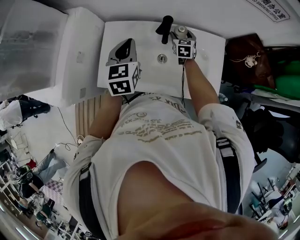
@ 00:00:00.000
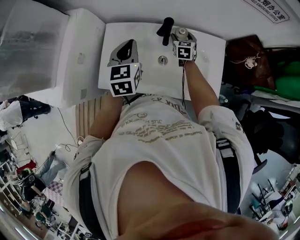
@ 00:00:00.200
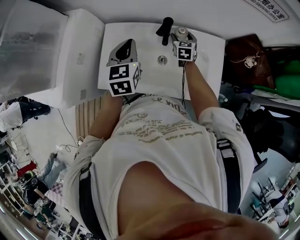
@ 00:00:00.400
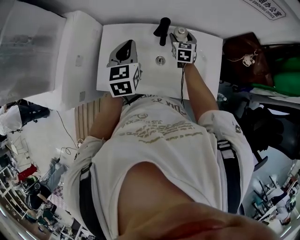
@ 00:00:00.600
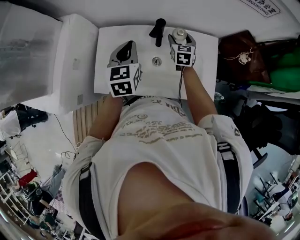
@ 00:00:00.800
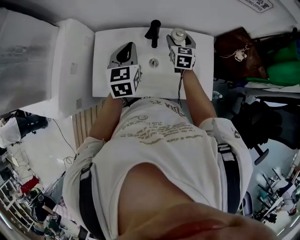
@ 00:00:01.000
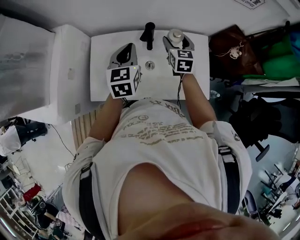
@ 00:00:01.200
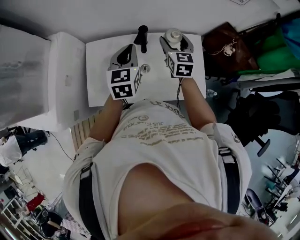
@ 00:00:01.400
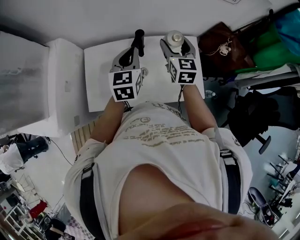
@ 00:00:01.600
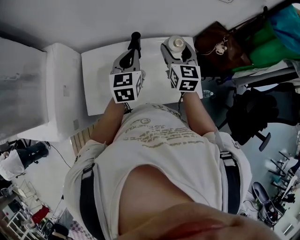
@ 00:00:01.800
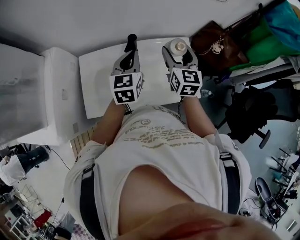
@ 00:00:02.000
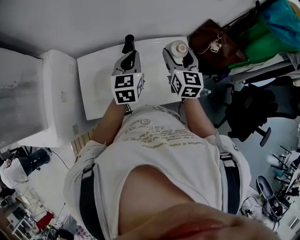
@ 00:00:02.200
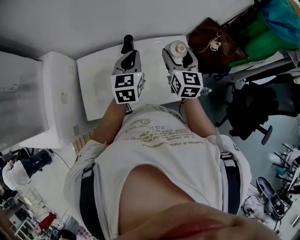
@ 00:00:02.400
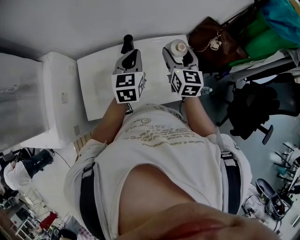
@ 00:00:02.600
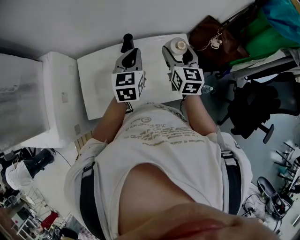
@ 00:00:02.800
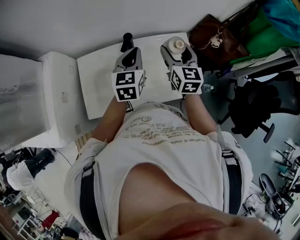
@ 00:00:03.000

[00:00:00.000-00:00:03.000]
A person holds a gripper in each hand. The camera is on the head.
00:00:00.000 to 00:00:01.600: The right gripper is displaced upward and backward by approximately 25 cm; the left gripper heads to the right, covering about 10 cm.
00:00:01.600 to 00:00:03.000: The right gripper changes place by approximately 5 cm; the left gripper travels to the right by some 5 cm.

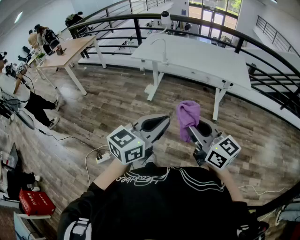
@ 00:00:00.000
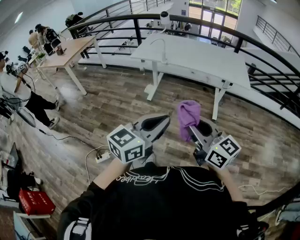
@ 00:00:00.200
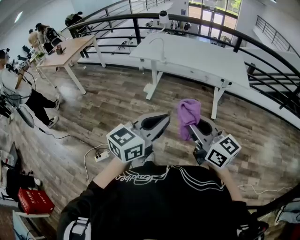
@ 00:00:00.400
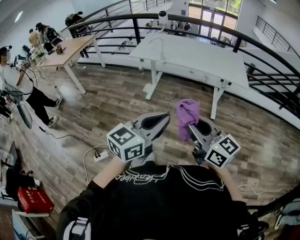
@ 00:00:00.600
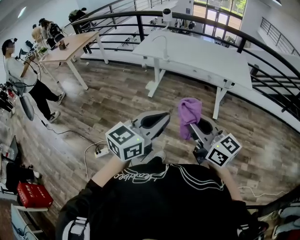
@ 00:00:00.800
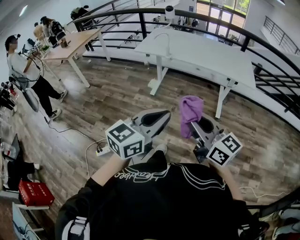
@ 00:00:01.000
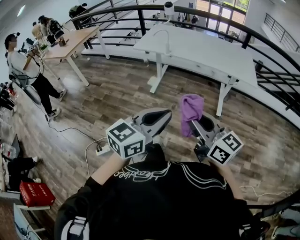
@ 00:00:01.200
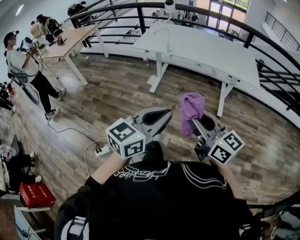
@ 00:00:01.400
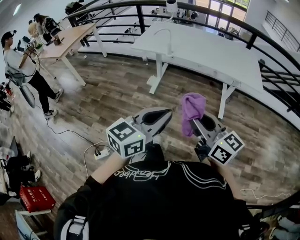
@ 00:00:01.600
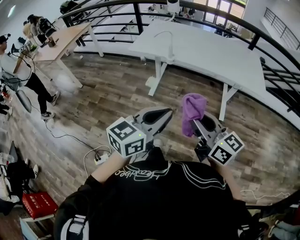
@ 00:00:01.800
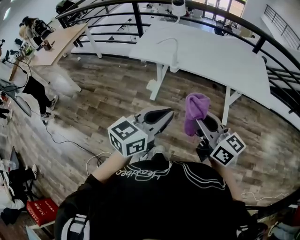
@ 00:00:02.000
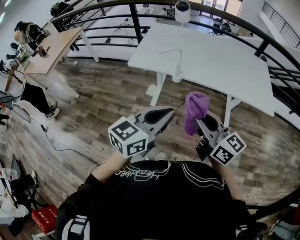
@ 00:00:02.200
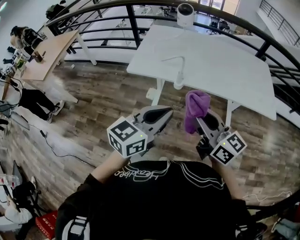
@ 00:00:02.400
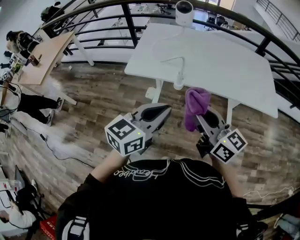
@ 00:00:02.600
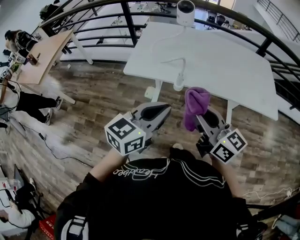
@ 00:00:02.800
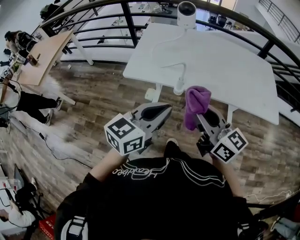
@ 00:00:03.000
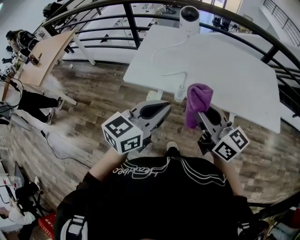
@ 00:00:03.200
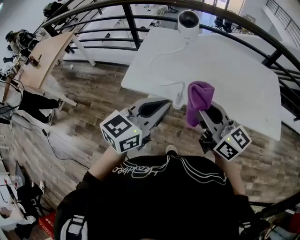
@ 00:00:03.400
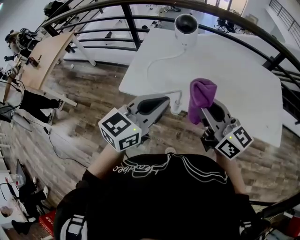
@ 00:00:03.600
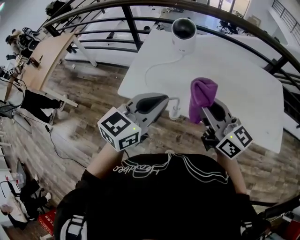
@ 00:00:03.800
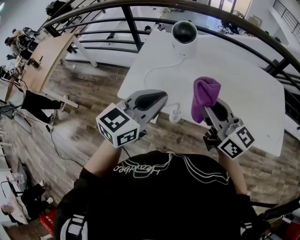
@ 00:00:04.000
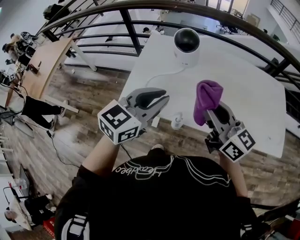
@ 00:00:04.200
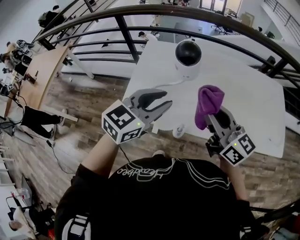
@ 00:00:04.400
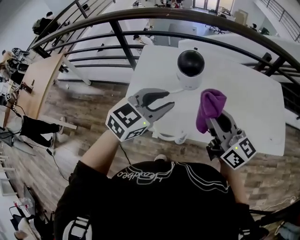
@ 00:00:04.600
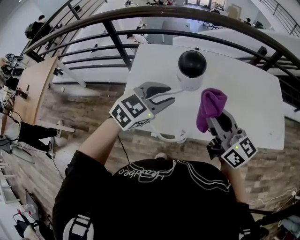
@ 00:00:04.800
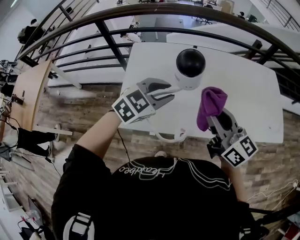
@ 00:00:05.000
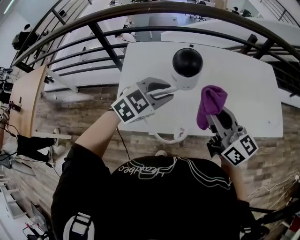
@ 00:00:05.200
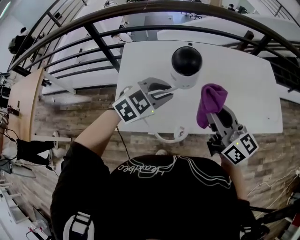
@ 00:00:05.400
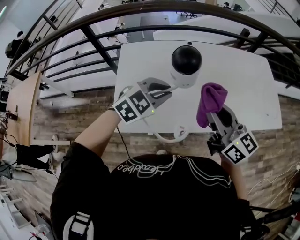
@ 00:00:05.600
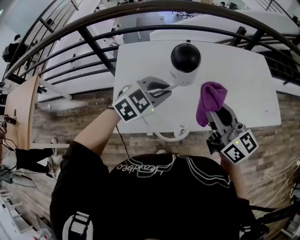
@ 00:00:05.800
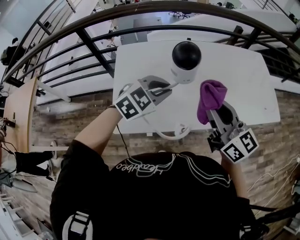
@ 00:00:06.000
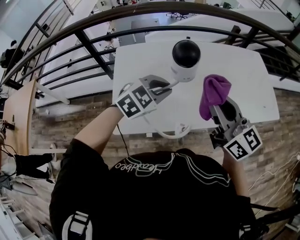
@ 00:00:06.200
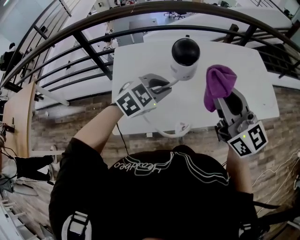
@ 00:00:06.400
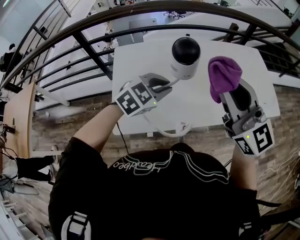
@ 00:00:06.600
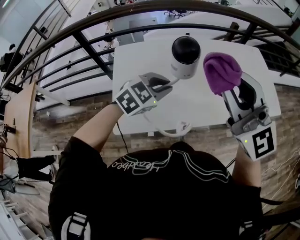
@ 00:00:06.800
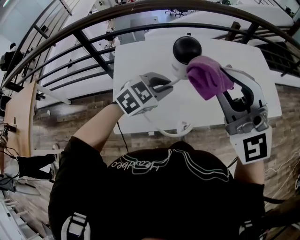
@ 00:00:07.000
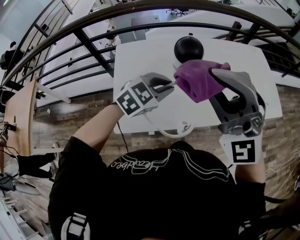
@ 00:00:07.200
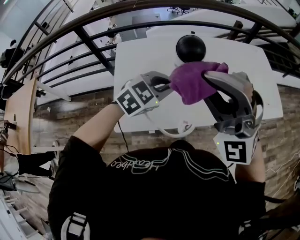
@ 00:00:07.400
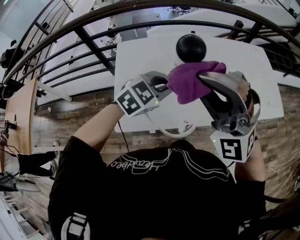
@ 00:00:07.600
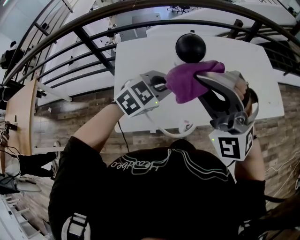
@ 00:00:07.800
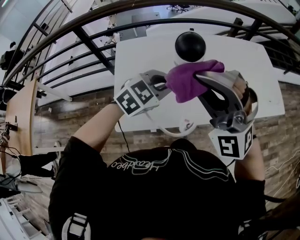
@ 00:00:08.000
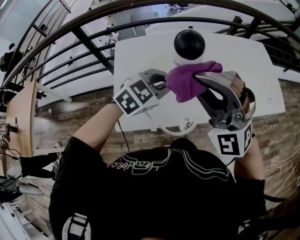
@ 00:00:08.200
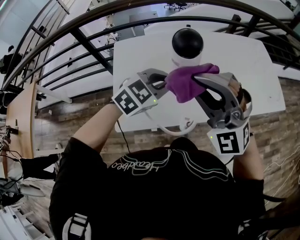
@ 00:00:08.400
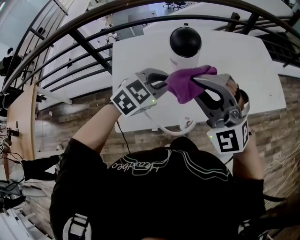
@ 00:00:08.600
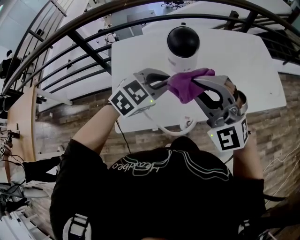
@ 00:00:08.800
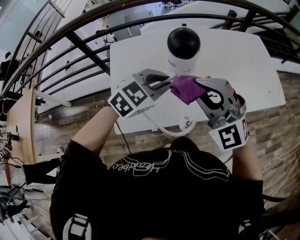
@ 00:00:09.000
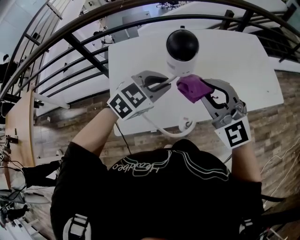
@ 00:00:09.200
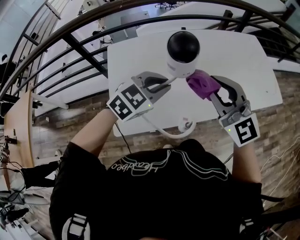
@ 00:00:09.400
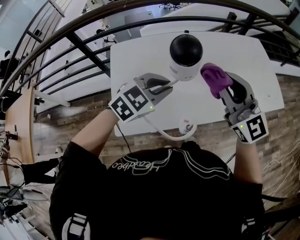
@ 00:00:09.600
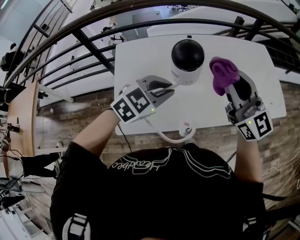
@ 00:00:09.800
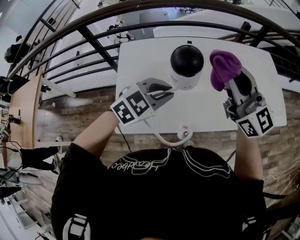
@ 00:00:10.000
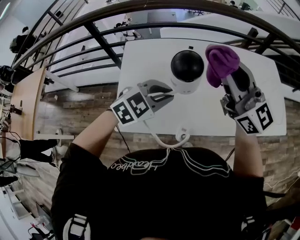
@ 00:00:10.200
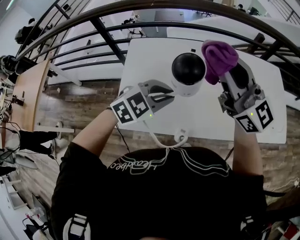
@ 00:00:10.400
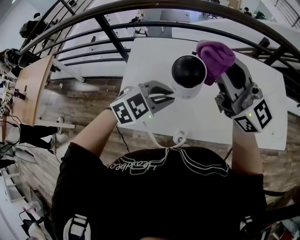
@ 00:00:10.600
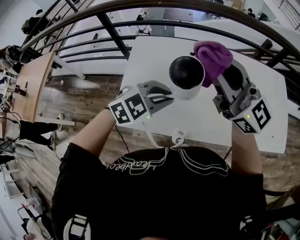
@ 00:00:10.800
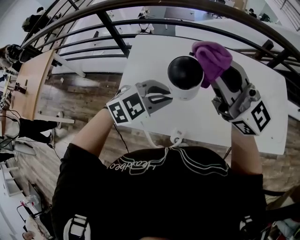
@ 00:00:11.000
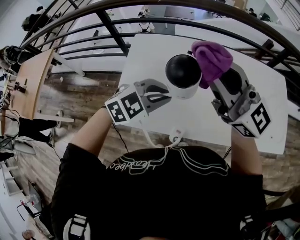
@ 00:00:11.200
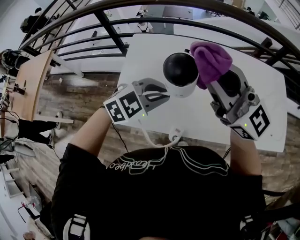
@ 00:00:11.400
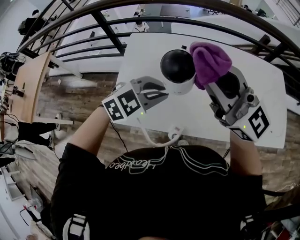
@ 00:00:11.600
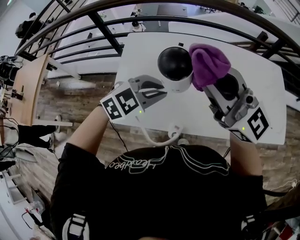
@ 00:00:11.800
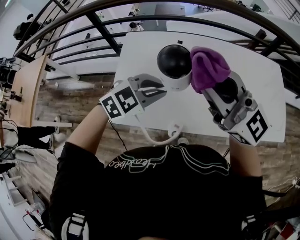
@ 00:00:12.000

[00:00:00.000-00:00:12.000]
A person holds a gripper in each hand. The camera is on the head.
00:00:00.000 to 00:00:01.600: The two grippers go approximately 15 cm forward.
00:00:01.600 to 00:00:03.000: Both grippers are carried forward, about 50 cm.
00:00:03.000 to 00:00:04.400: Both grippers move forward, approximately 25 cm. The left gripper opens its fingers.
00:00:04.400 to 00:00:06.000: The left gripper heads forward and downward, covering roughly 10 cm, and swivels roughly 40 degrees, while the right gripper rotates about 20 degrees.
00:00:06.000 to 00:00:07.600: The right gripper moves to the left and upward, roughly 10 cm, and twists some 80 degrees counterclockwise, seen from behind.
00:00:07.600 to 00:00:09.000: The right gripper goes roughly 10 cm downward, and turns by roughly 20 degrees.
00:00:09.000 to 00:00:10.400: The right gripper travels forward and upward by roughly 15 cm, and rolls clockwise, seen from behind, by some 40 degrees.
00:00:10.400 to 00:00:12.000: The right gripper travels backward by approximately 5 cm.

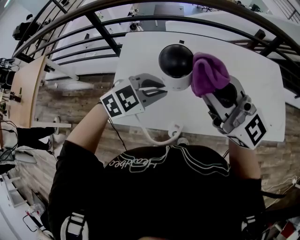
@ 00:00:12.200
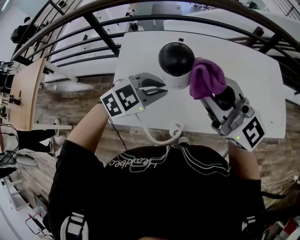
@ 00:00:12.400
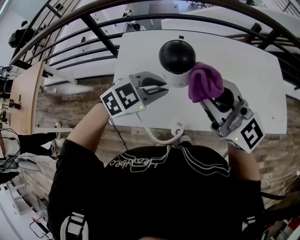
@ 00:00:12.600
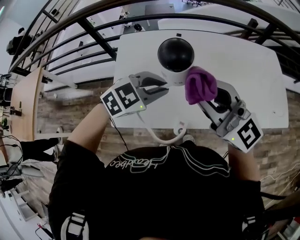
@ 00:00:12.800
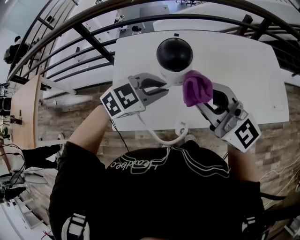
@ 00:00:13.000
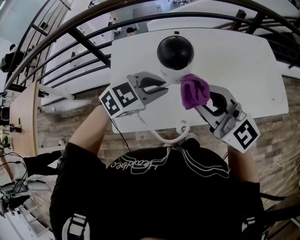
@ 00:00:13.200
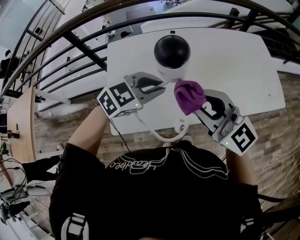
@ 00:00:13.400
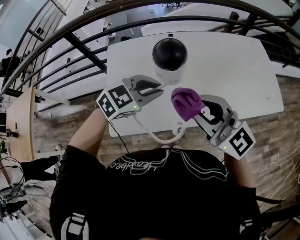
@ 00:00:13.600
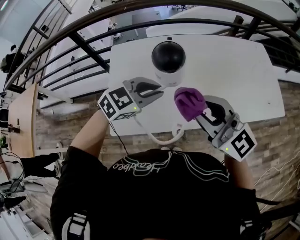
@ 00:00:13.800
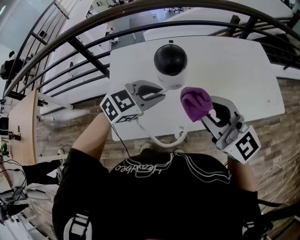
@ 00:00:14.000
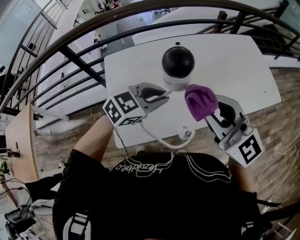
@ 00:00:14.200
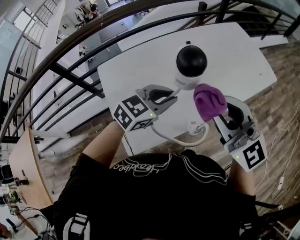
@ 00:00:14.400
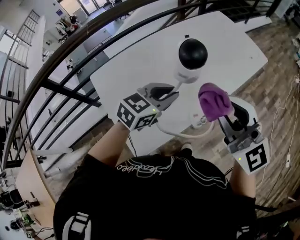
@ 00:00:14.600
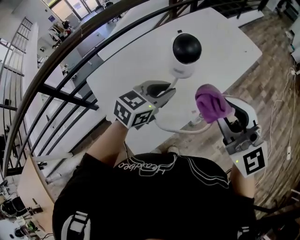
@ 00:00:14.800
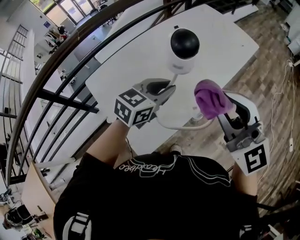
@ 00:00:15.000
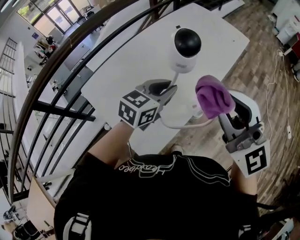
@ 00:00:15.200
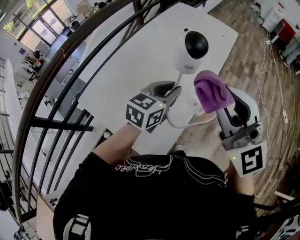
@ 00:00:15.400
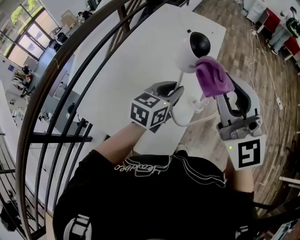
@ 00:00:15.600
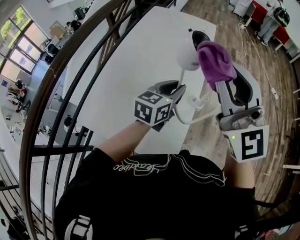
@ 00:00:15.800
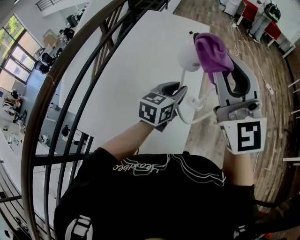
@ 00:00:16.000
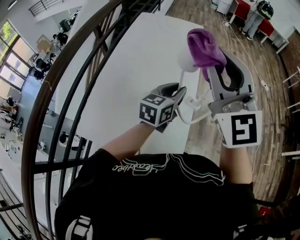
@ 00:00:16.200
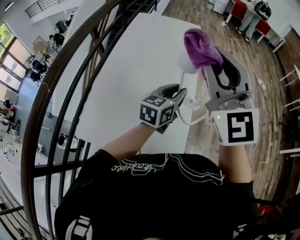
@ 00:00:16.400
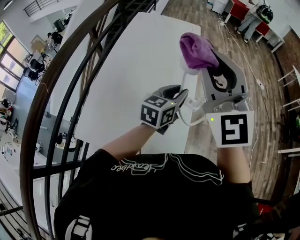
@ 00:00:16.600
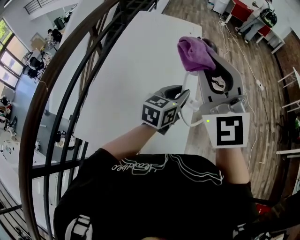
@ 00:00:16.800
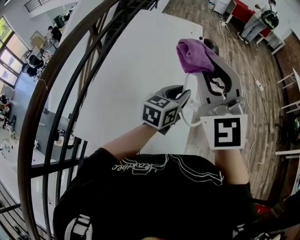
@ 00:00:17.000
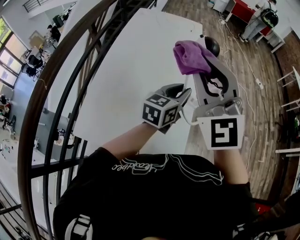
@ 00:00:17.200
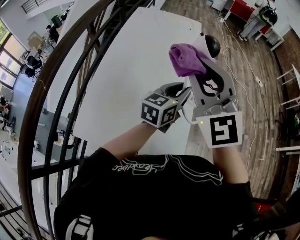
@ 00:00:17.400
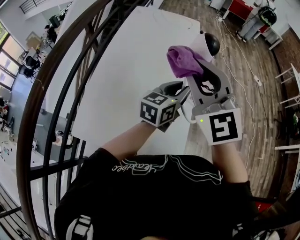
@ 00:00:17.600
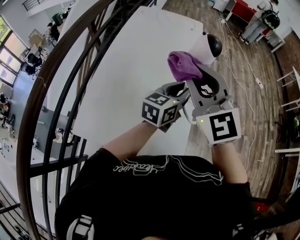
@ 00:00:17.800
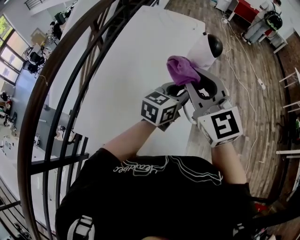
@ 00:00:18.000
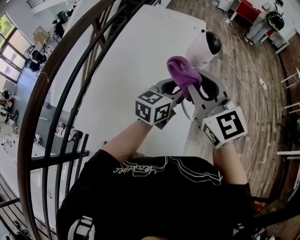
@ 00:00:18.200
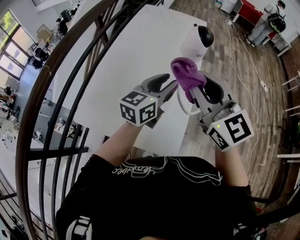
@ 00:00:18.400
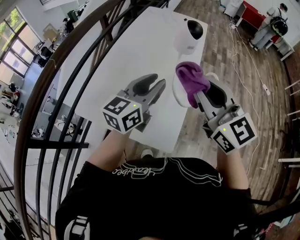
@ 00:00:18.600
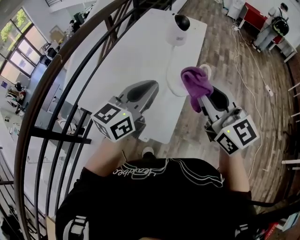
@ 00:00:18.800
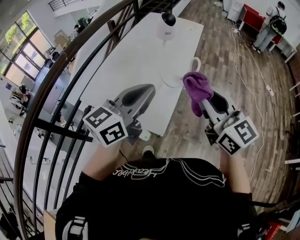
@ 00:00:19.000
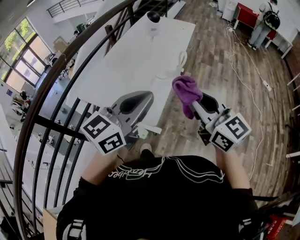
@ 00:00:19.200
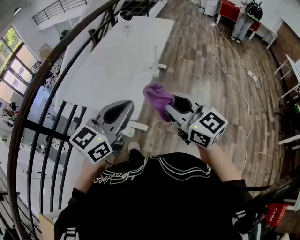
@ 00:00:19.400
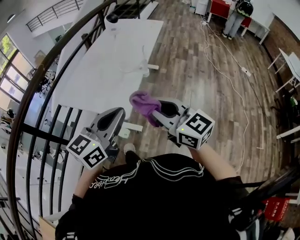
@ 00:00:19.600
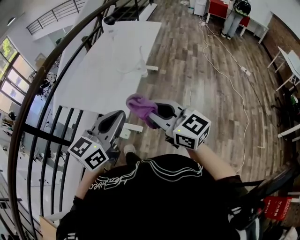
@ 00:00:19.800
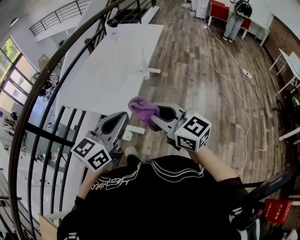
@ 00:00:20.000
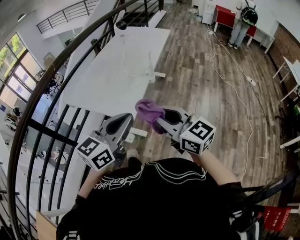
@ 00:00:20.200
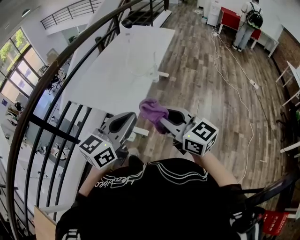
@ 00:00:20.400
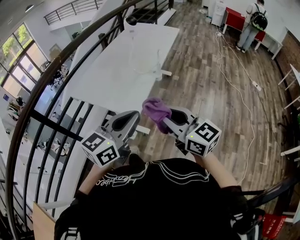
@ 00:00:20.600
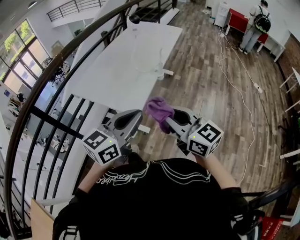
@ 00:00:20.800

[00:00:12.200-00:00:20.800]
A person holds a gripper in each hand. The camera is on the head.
00:00:12.200 to 00:00:13.600: The right gripper heads downward and backward, covering some 10 cm.
00:00:13.600 to 00:00:15.000: The left gripper turns by approximately 20 degrees. The right gripper shifts by approximately 10 cm, and rotates about 50 degrees.
00:00:15.000 to 00:00:16.600: The left gripper turns by approximately 30 degrees; the right gripper ends up some 15 cm from where it was, and turns by some 60 degrees.
00:00:16.600 to 00:00:18.000: The right gripper goes approximately 10 cm downward, and rotates about 20 degrees.
00:00:18.000 to 00:00:19.400: The two grippers travel together, backward, some 40 cm. The right gripper turns by approximately 30 degrees.
00:00:19.400 to 00:00:20.800: The left gripper shifts by roughly 5 cm. The right gripper shifts by some 5 cm.
